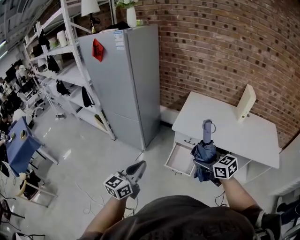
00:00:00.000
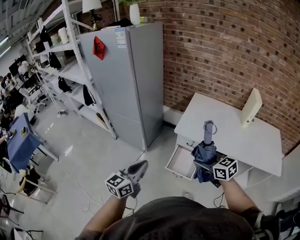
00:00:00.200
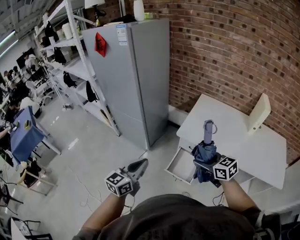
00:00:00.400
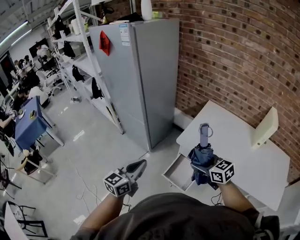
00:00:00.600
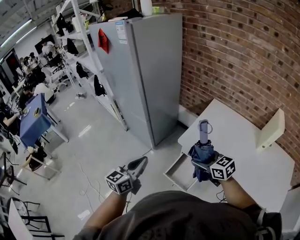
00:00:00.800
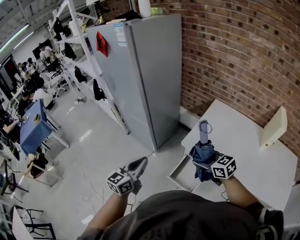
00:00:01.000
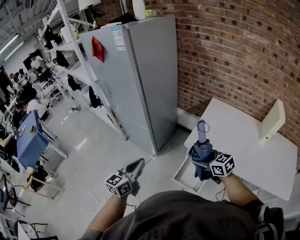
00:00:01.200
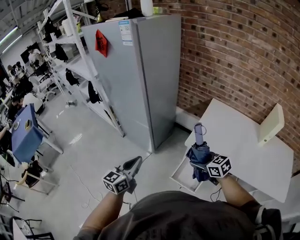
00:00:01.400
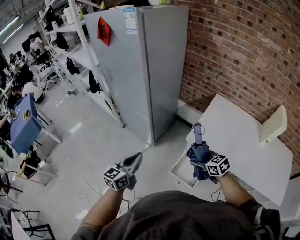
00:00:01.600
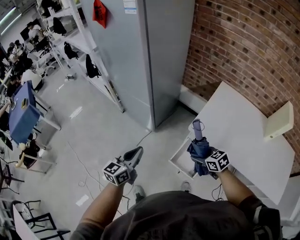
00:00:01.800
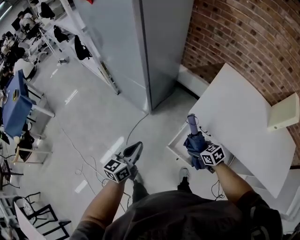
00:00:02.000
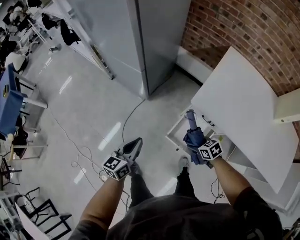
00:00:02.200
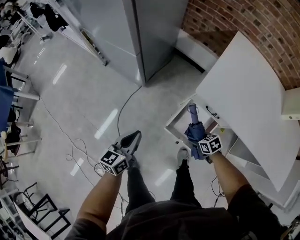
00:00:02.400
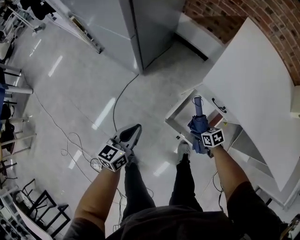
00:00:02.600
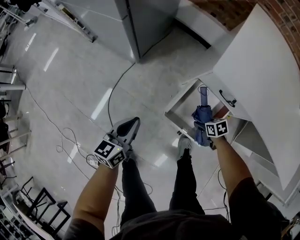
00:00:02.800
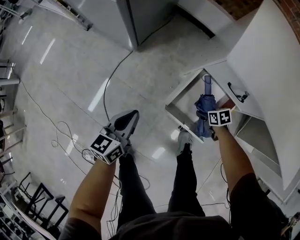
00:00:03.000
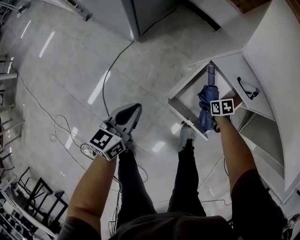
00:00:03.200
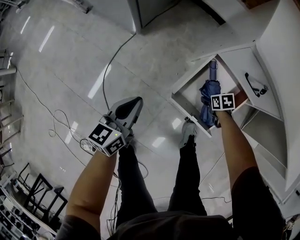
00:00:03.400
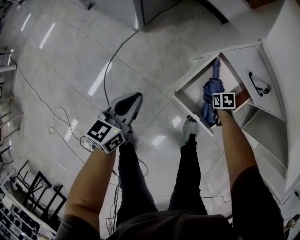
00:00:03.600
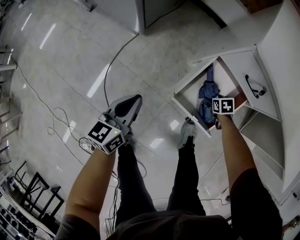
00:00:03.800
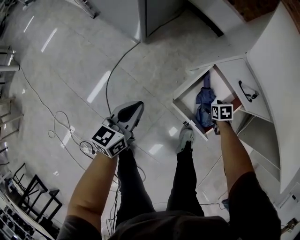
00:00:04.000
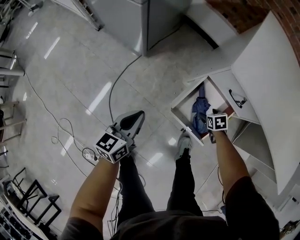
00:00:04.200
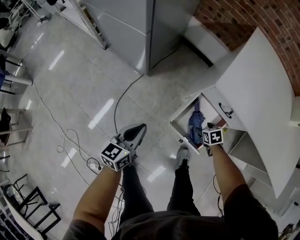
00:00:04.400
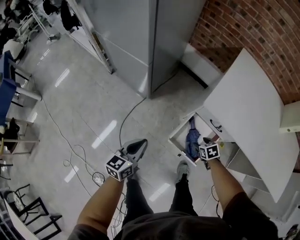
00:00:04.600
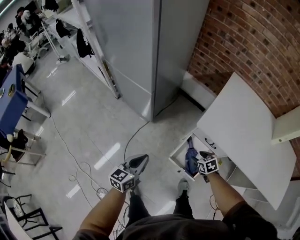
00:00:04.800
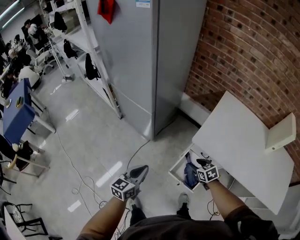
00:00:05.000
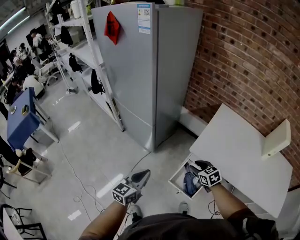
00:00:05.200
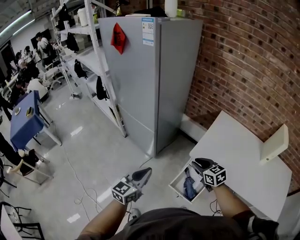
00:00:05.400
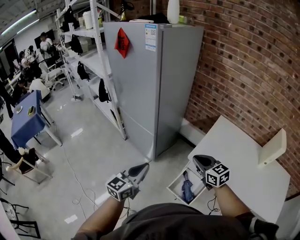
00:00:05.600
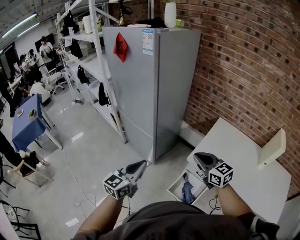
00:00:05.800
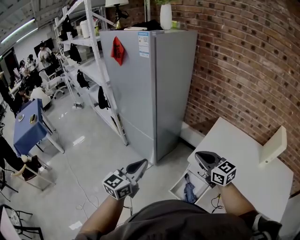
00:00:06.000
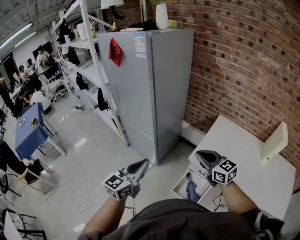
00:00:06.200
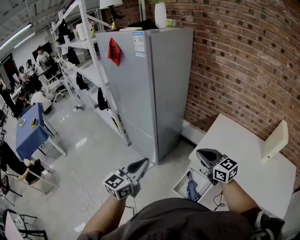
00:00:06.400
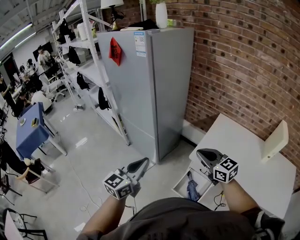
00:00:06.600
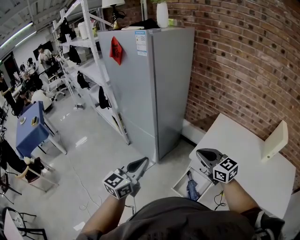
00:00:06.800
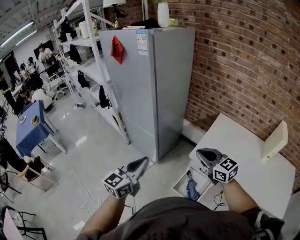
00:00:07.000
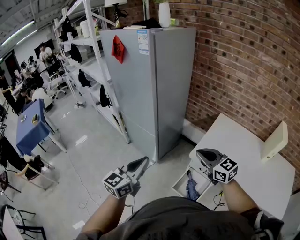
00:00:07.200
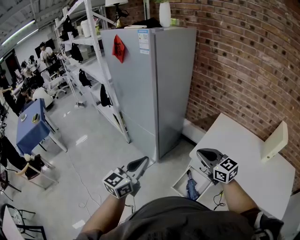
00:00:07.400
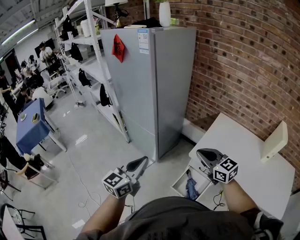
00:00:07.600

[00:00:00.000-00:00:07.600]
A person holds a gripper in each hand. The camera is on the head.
00:00:00.000 to 00:00:01.600: The right gripper moves forward and downward, roughly 25 cm, and rotates roughly 20 degrees; the left gripper travels forward by some 20 cm.
00:00:01.600 to 00:00:03.000: The grippers both shift downward by about 50 cm. The right gripper angles its fingers downward, by about 30 degrees.
00:00:03.000 to 00:00:04.600: Both grippers travel together upward, roughly 20 cm.
00:00:04.600 to 00:00:06.000: Both grippers travel together upward, roughly 50 cm. The left gripper rotates about 20 degrees, while the right gripper angles its fingers upward, by about 50 degrees, and closes its fingers.
00:00:06.000 to 00:00:07.600: The grippers make only small movements.

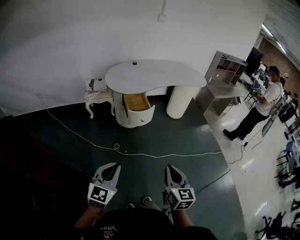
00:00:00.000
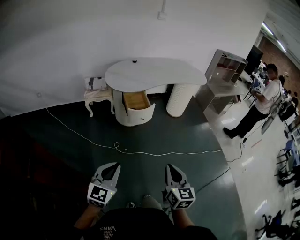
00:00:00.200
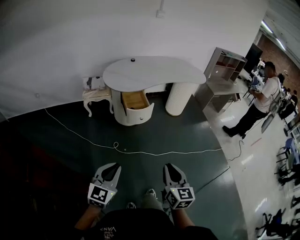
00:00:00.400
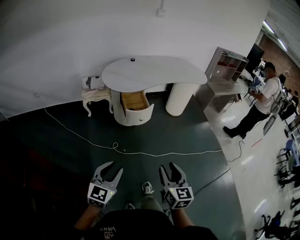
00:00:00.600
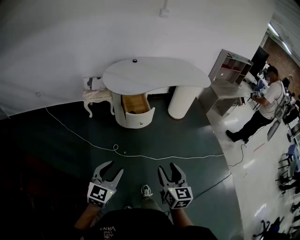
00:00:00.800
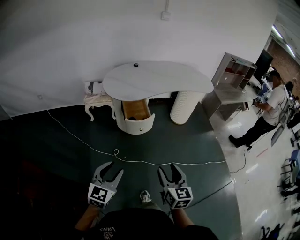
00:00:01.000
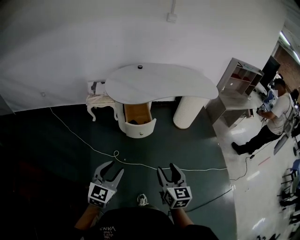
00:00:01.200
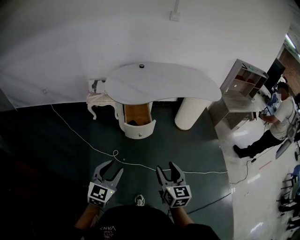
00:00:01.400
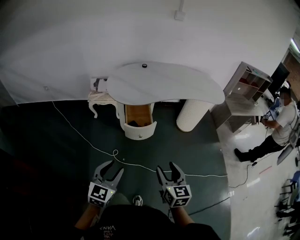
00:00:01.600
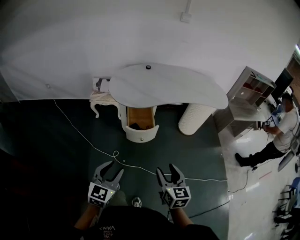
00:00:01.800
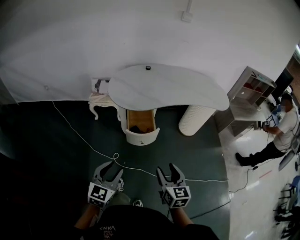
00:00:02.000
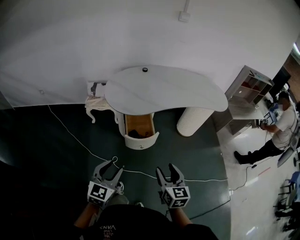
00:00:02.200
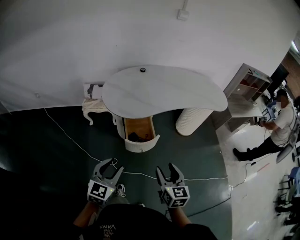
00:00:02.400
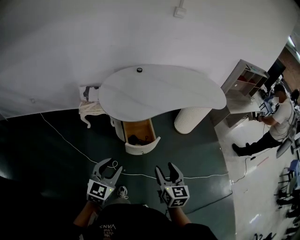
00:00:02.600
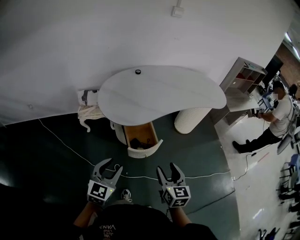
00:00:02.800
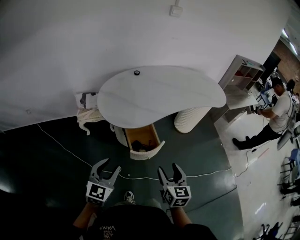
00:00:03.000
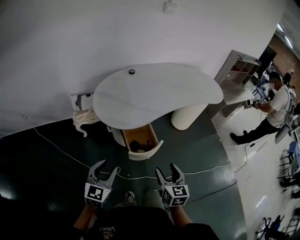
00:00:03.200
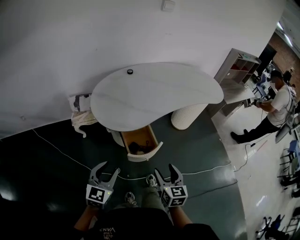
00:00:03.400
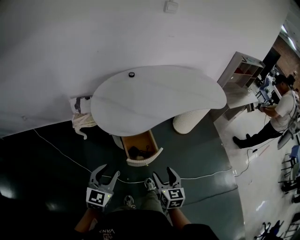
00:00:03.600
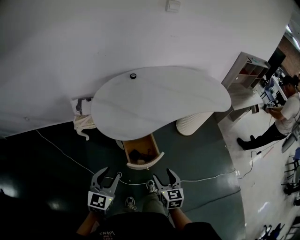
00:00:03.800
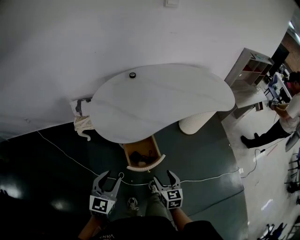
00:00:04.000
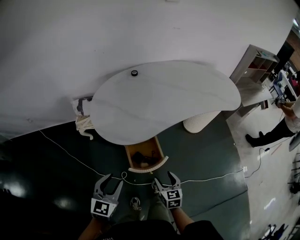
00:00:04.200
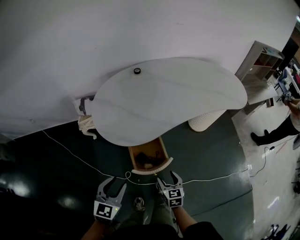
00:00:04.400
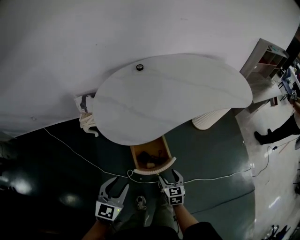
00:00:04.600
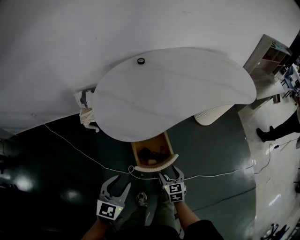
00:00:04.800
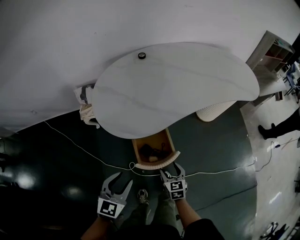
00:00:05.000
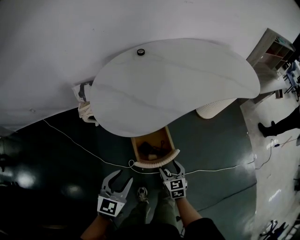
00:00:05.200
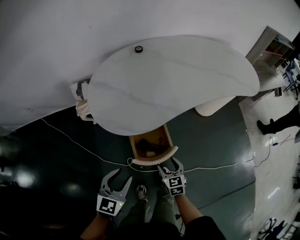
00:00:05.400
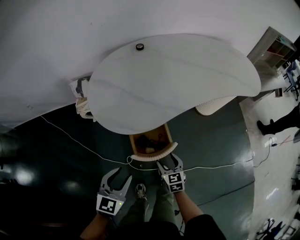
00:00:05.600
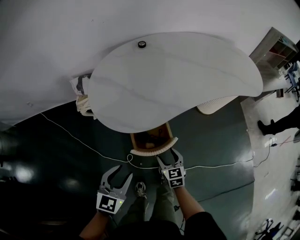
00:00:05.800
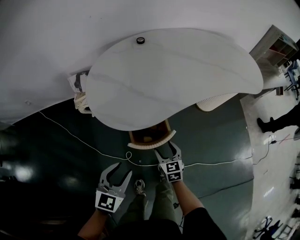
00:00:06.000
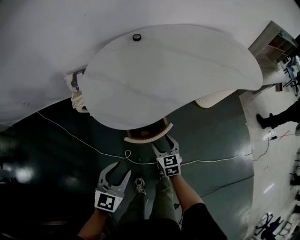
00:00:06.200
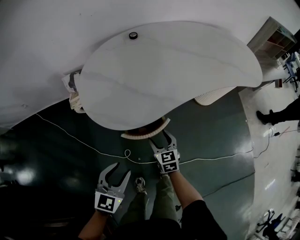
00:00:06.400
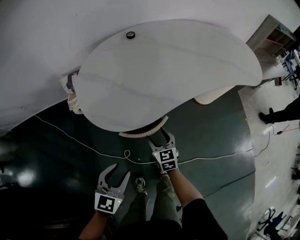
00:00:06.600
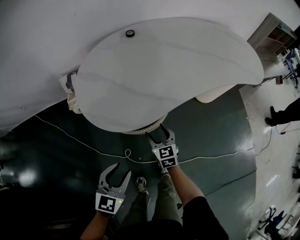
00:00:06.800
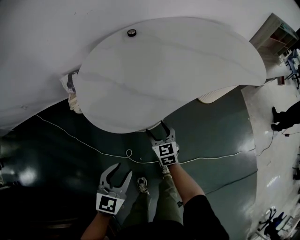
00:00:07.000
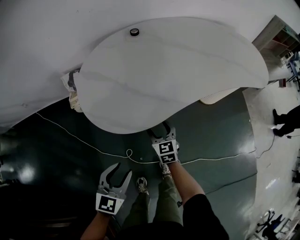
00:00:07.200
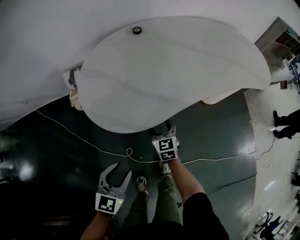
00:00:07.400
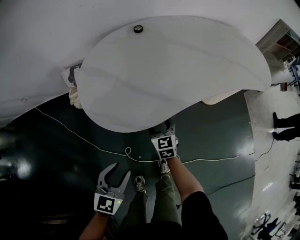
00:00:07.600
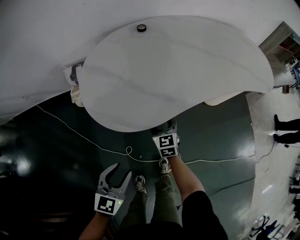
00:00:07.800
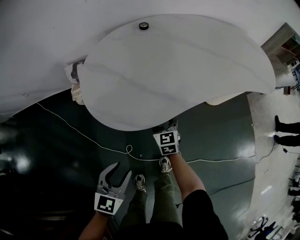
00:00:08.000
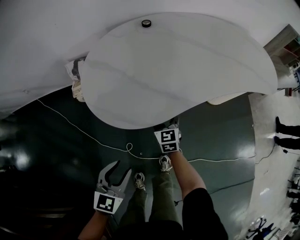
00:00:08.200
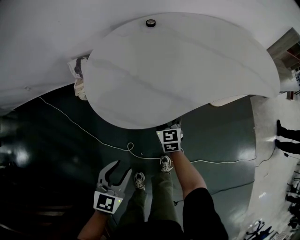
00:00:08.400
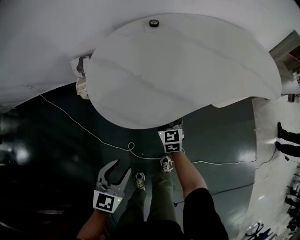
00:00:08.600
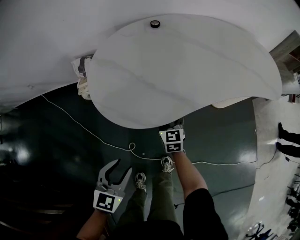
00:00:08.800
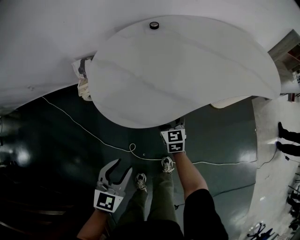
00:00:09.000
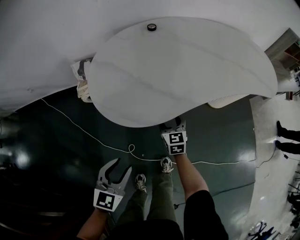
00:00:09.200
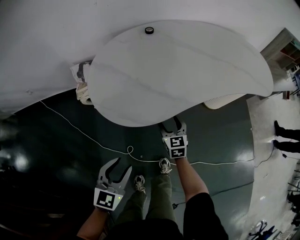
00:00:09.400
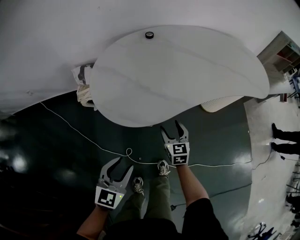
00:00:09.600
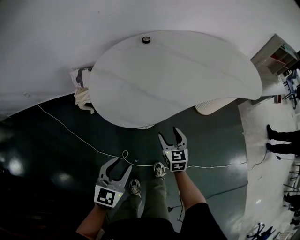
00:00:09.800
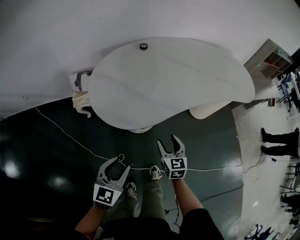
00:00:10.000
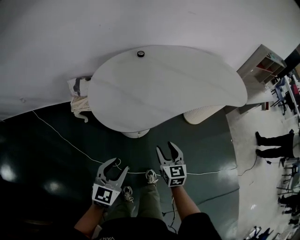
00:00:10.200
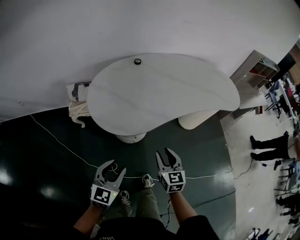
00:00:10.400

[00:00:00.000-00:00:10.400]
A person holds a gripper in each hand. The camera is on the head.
00:00:00.000 to 00:00:01.400: The grippers both shift forward by about 20 cm. The right gripper opens up, while the left gripper opens up.
00:00:01.400 to 00:00:03.000: The two grippers go approximately 25 cm forward and to the left.
00:00:03.000 to 00:00:04.400: The left gripper is displaced forward and downward by some 10 cm. The right gripper is displaced downward and forward by roughly 25 cm.
00:00:04.400 to 00:00:06.000: The right gripper travels forward and downward by roughly 10 cm, while the left gripper moves some 5 cm.
00:00:06.000 to 00:00:07.400: The right gripper moves forward, approximately 10 cm.
00:00:07.400 to 00:00:09.000: The grippers move only a little.
00:00:09.000 to 00:00:10.400: The right gripper shifts about 25 cm backward, upward and to the right, and closes up; the left gripper heads upward, covering some 10 cm.

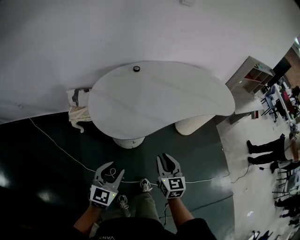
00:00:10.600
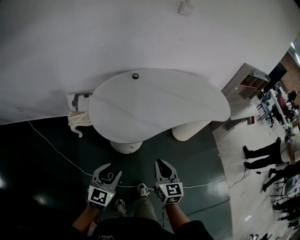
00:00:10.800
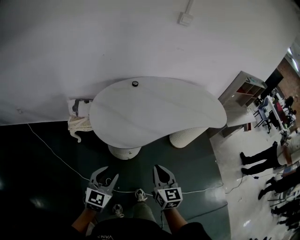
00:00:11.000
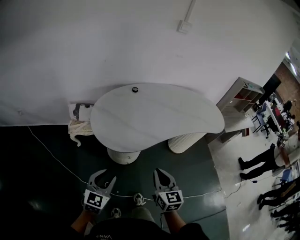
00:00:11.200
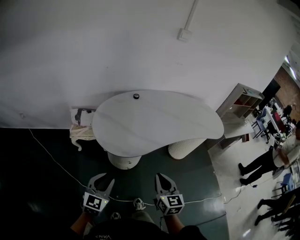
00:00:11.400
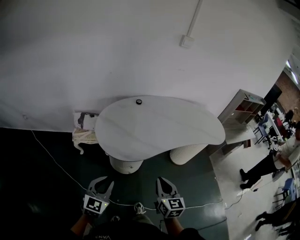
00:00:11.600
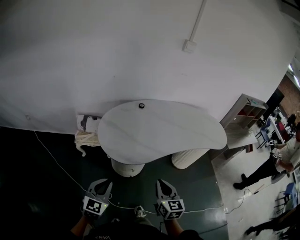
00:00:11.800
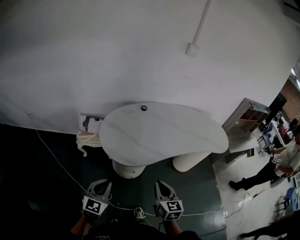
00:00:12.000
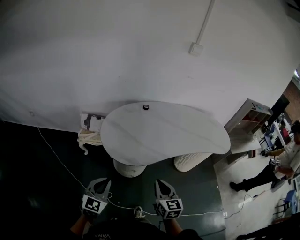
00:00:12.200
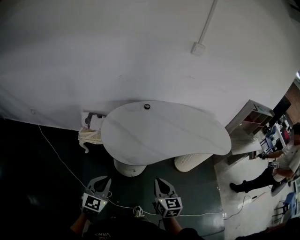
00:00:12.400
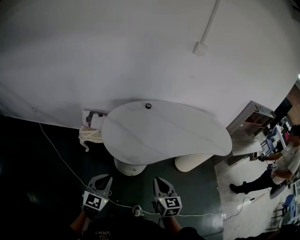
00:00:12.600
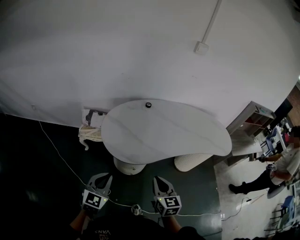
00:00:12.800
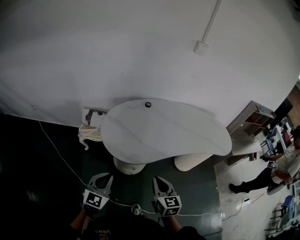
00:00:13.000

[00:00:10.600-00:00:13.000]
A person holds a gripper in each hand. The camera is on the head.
00:00:10.600 to 00:00:11.800: The left gripper goes some 10 cm to the left and upward, and closes its fingers. Meanwhile the right gripper goes some 10 cm upward.
00:00:11.800 to 00:00:13.000: There are only small adjustments of the grippers.

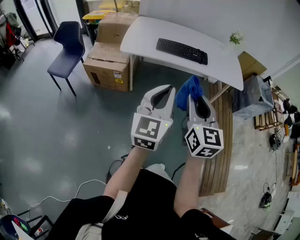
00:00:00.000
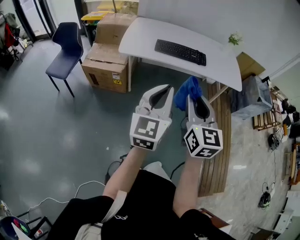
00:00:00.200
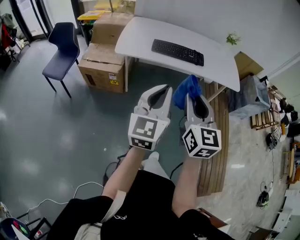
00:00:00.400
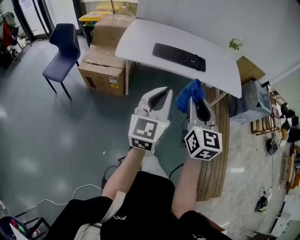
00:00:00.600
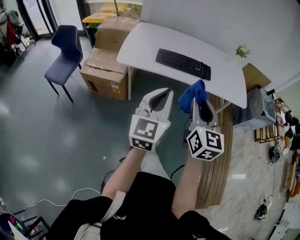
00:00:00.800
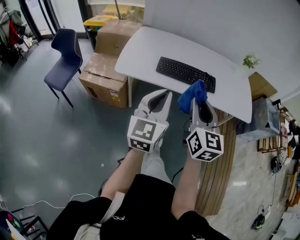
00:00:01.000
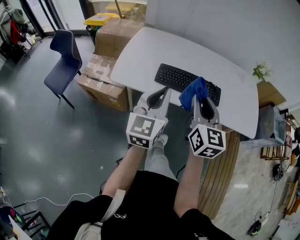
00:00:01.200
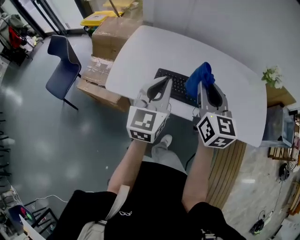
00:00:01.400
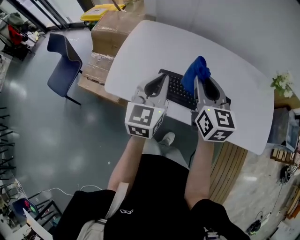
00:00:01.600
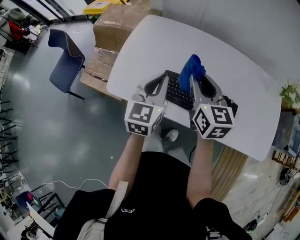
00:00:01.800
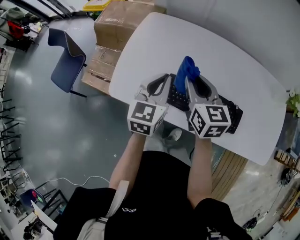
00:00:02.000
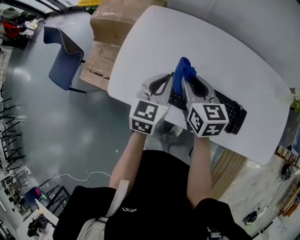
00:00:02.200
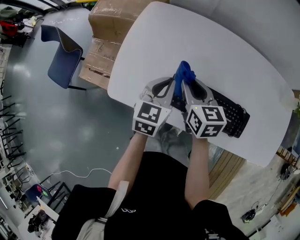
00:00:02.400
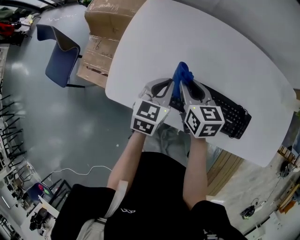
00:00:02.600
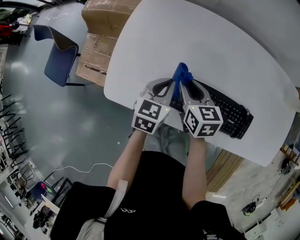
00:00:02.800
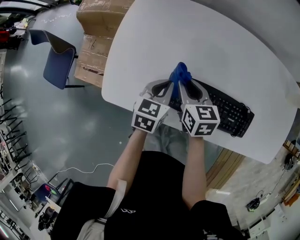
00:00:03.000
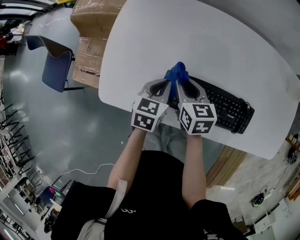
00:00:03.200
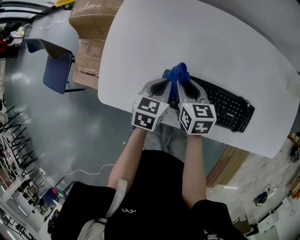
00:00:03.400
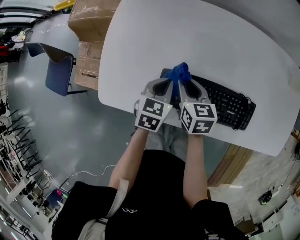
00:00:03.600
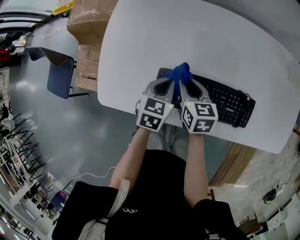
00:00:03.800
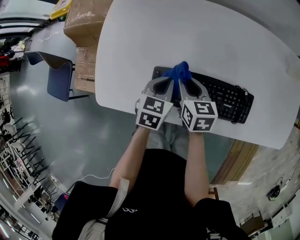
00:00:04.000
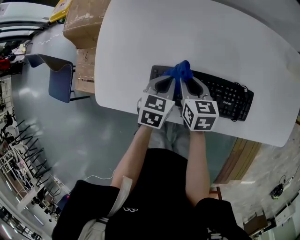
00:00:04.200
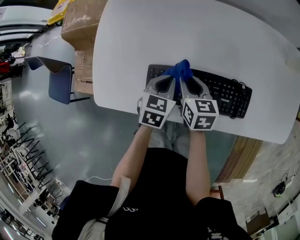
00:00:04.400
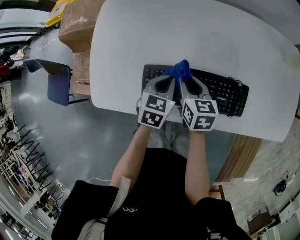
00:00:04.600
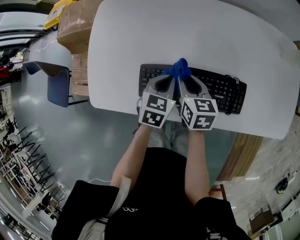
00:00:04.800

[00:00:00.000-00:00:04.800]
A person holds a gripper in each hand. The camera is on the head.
00:00:00.000 to 00:00:01.600: The two grippers travel together, forward, about 60 cm.
00:00:01.600 to 00:00:03.200: Both grippers move downward and forward, roughly 25 cm. The left gripper points its fingers about 30 degrees further downward, while the right gripper turns by roughly 30 degrees.
00:00:03.200 to 00:00:04.800: Both grippers travel together to the right, approximately 10 cm.
